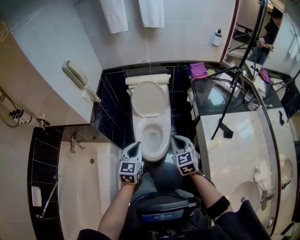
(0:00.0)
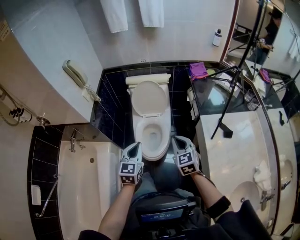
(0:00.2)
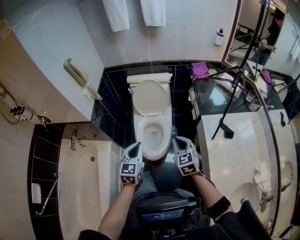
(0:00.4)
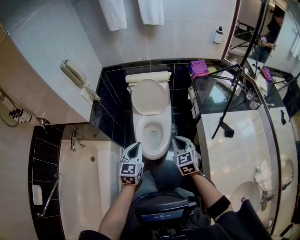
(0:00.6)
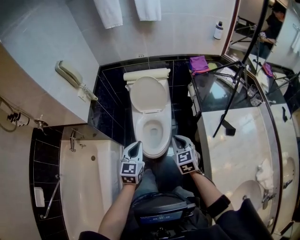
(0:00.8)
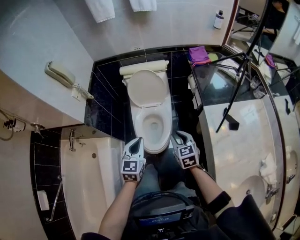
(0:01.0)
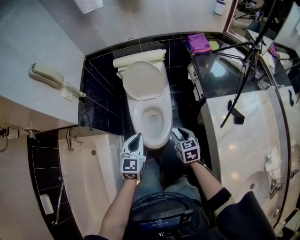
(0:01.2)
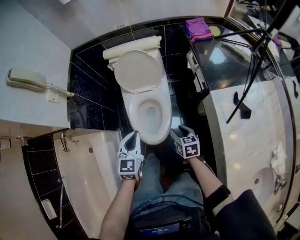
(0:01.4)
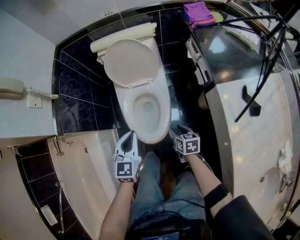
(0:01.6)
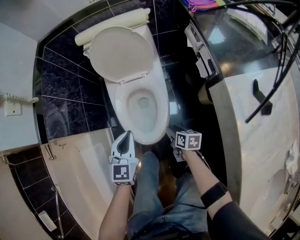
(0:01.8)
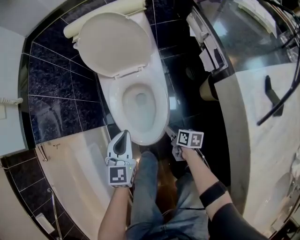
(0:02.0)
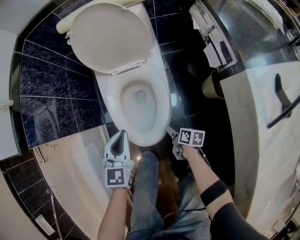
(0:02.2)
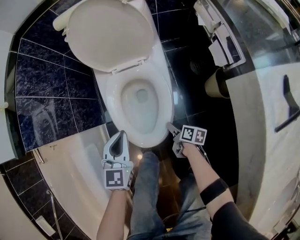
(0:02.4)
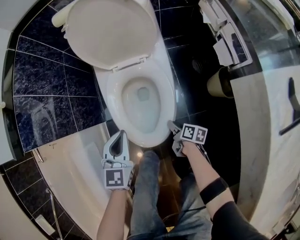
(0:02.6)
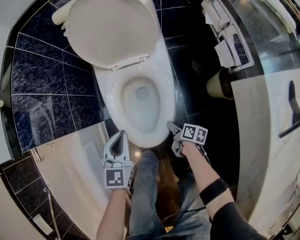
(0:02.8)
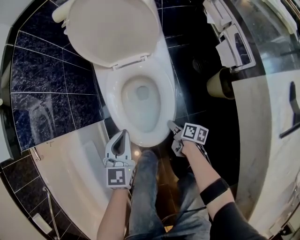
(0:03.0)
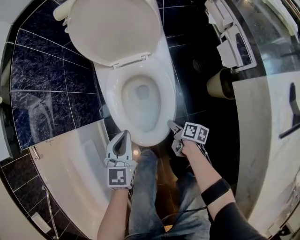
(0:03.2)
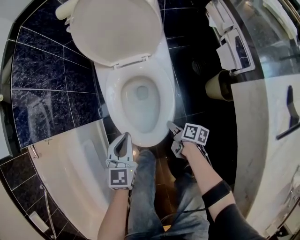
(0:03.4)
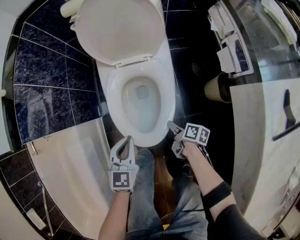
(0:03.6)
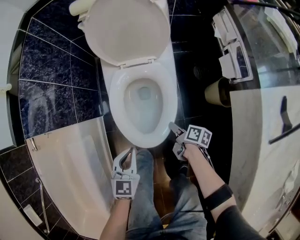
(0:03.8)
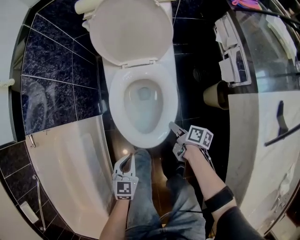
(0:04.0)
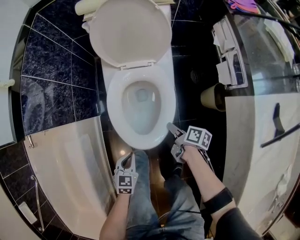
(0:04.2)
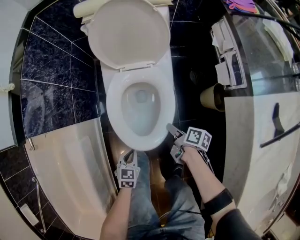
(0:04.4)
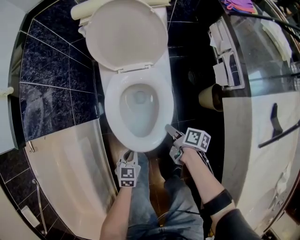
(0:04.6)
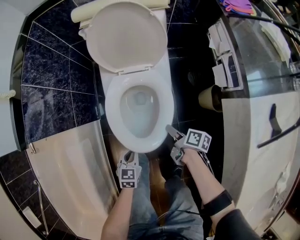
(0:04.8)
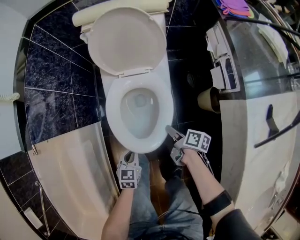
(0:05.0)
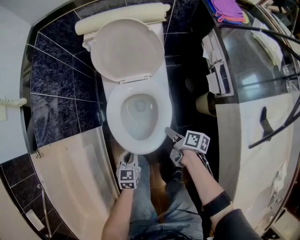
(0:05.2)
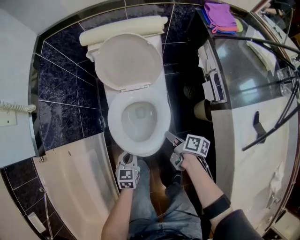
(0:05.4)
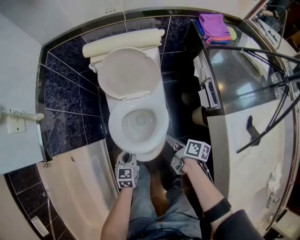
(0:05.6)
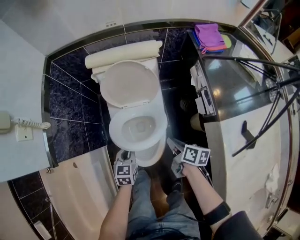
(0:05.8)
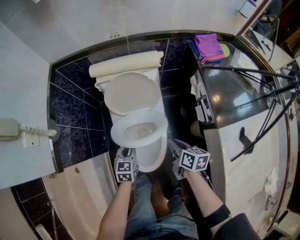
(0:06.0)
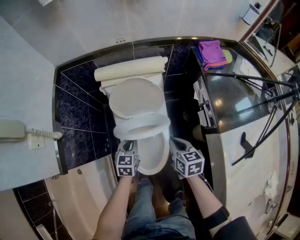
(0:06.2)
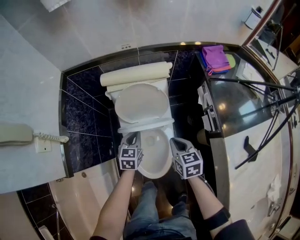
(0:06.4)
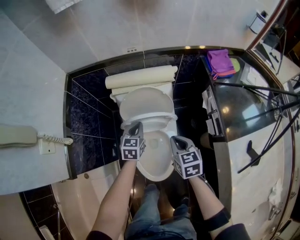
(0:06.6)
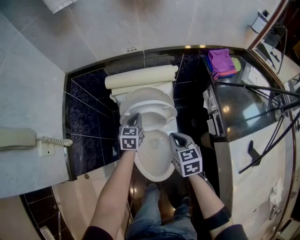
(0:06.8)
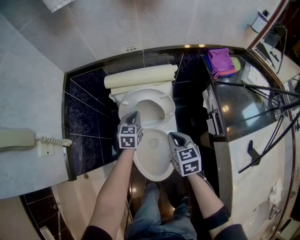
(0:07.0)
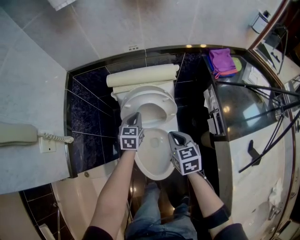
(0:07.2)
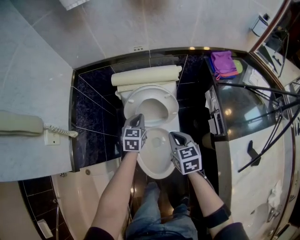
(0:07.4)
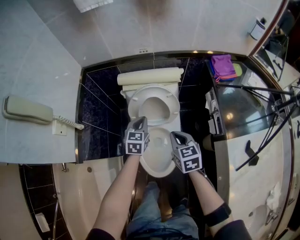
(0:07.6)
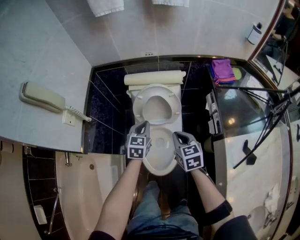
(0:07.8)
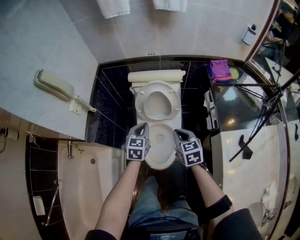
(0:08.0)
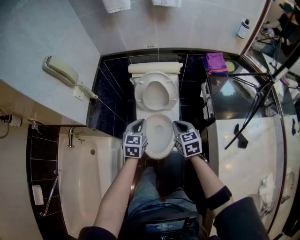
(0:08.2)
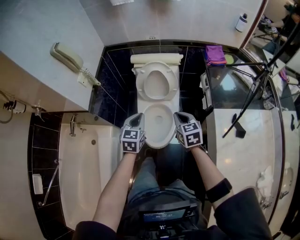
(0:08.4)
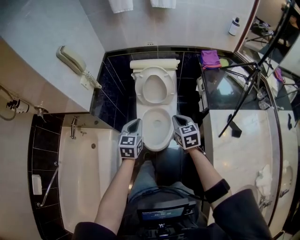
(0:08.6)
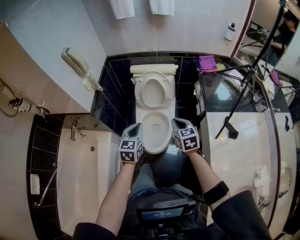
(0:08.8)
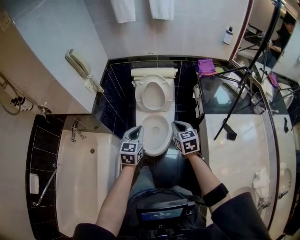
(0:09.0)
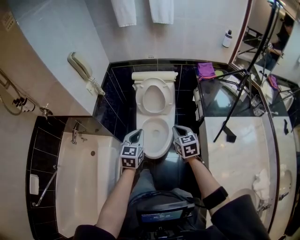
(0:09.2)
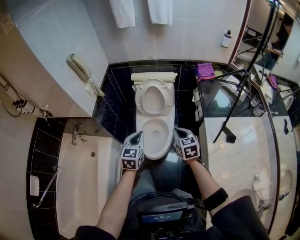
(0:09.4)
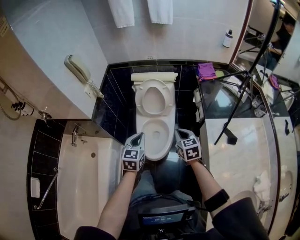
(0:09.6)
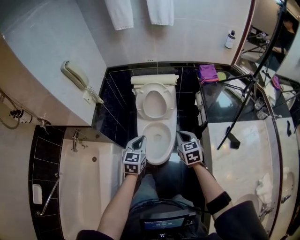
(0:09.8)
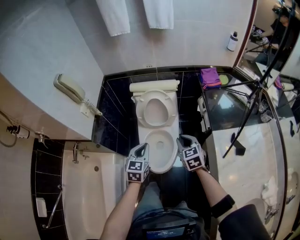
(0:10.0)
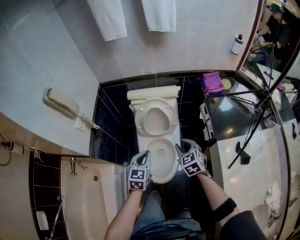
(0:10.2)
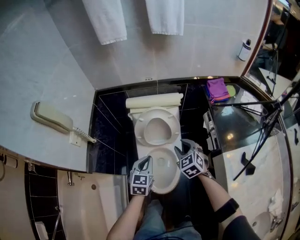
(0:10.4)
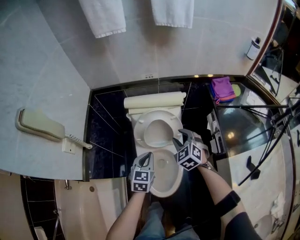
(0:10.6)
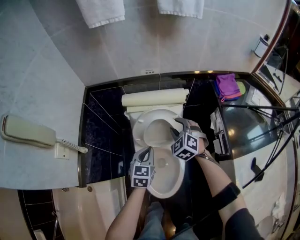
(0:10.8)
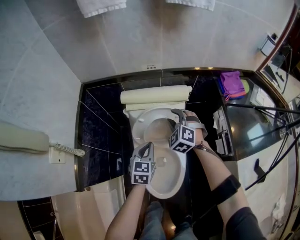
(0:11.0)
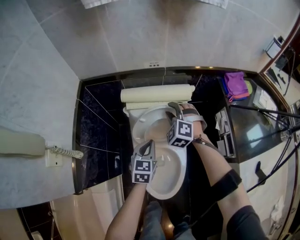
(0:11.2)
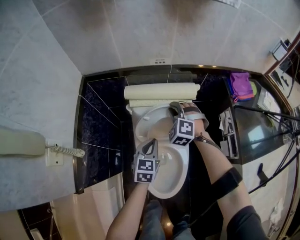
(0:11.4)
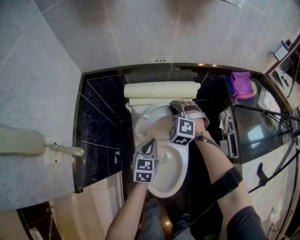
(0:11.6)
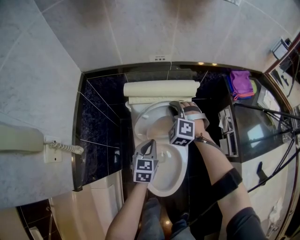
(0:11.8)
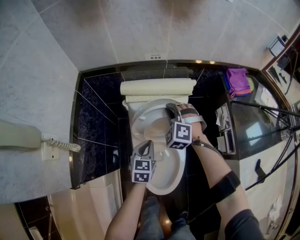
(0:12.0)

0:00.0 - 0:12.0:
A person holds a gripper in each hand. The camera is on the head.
0:00.0 - 0:01.6: The right gripper travels downward by some 40 cm, twists roughly 40 degrees clockwise, seen from behind, and opens. The left gripper travels downward and forward by roughly 25 cm.
0:01.6 - 0:03.0: The grippers both shift downward by some 25 cm. The right gripper turns by some 40 degrees.
0:03.0 - 0:04.4: The left gripper travels backward and downward by some 15 cm, and turns by some 20 degrees. Meanwhile the right gripper is displaced upward by approximately 15 cm.
0:04.4 - 0:06.0: The right gripper goes roughly 30 cm upward and forward, changes its angle by some 30 degrees, and closes up. The left gripper shifts about 30 cm forward and upward.
0:06.0 - 0:07.6: The right gripper travels upward, to the left and forward by roughly 15 cm, and turns by about 40 degrees. Meanwhile the left gripper goes roughly 20 cm forward and upward.
0:07.6 - 0:09.0: The left gripper shifts some 40 cm backward and upward, while the right gripper goes roughly 25 cm backward and upward.
0:09.0 - 0:10.4: The two grippers go approximately 25 cm forward and downward. The right gripper changes its angle by about 20 degrees, and opens up.
0:10.4 - 0:12.0: The right gripper goes approximately 25 cm forward and to the left, and rolls counterclockwise, seen from behind, by approximately 40 degrees, while the left gripper travels downward and forward by roughly 20 cm.

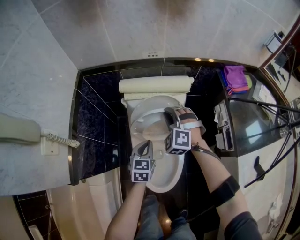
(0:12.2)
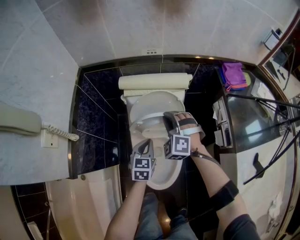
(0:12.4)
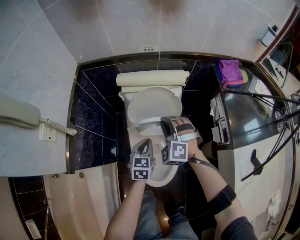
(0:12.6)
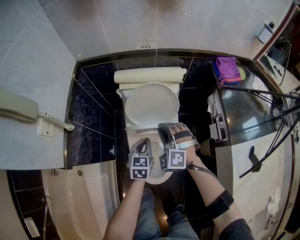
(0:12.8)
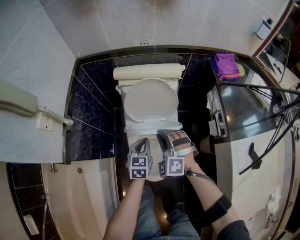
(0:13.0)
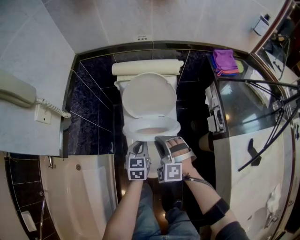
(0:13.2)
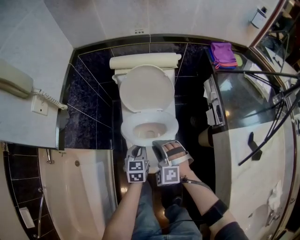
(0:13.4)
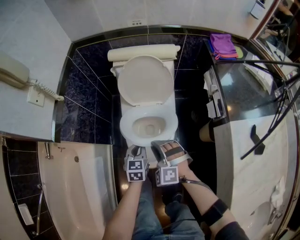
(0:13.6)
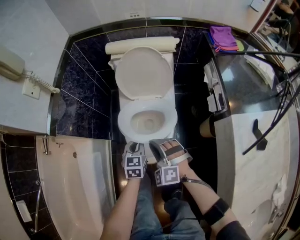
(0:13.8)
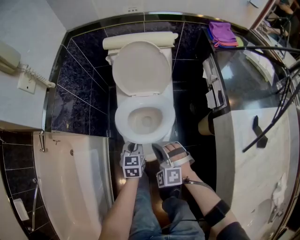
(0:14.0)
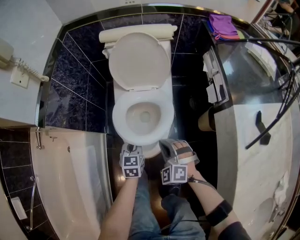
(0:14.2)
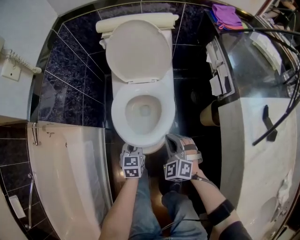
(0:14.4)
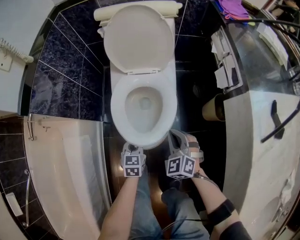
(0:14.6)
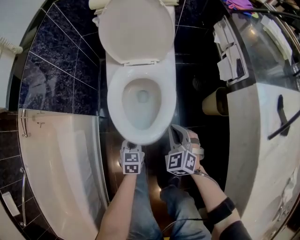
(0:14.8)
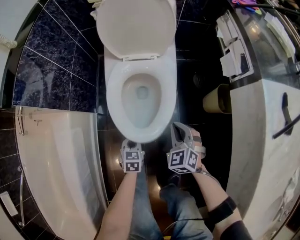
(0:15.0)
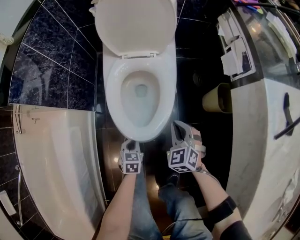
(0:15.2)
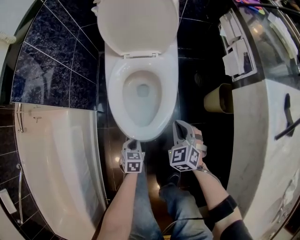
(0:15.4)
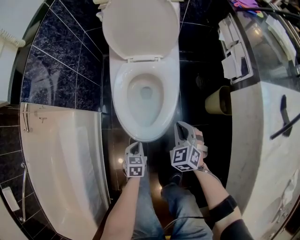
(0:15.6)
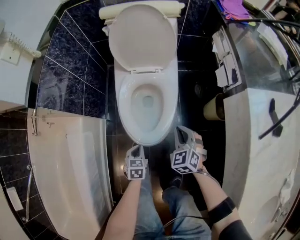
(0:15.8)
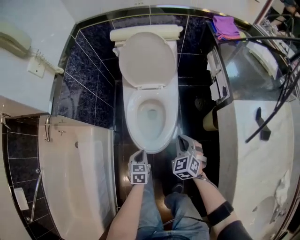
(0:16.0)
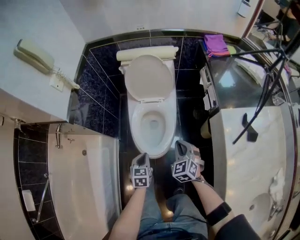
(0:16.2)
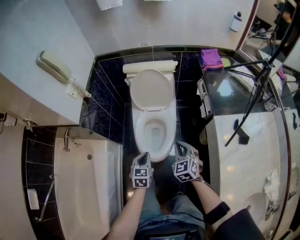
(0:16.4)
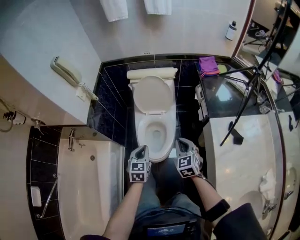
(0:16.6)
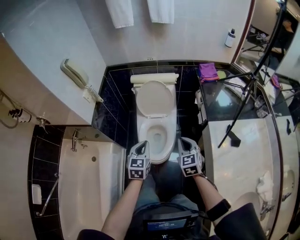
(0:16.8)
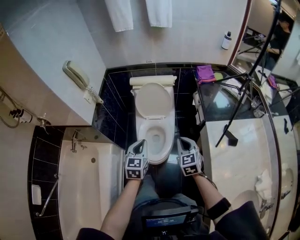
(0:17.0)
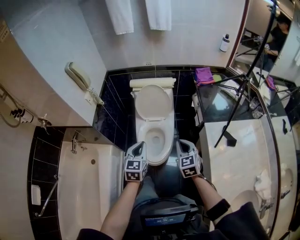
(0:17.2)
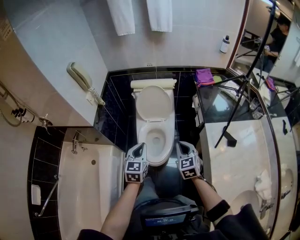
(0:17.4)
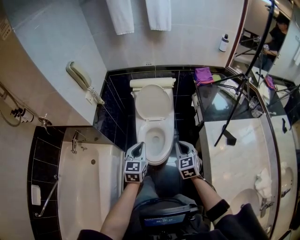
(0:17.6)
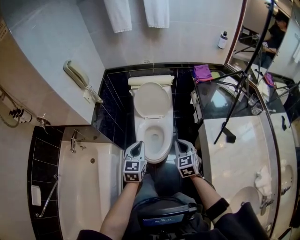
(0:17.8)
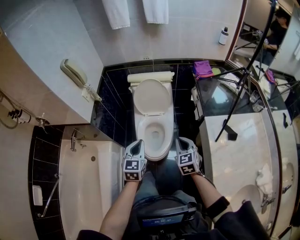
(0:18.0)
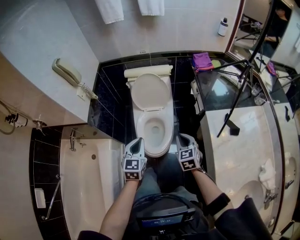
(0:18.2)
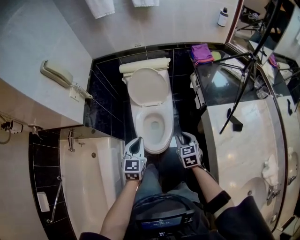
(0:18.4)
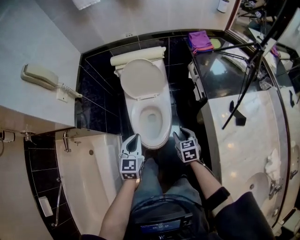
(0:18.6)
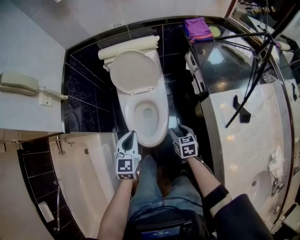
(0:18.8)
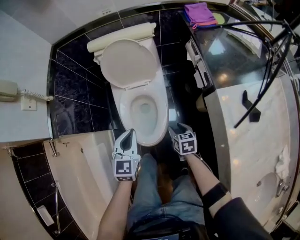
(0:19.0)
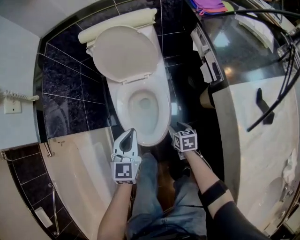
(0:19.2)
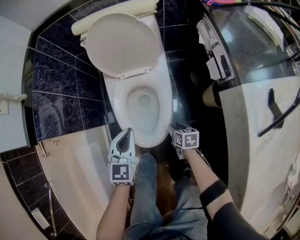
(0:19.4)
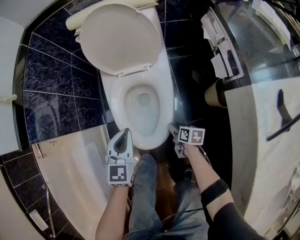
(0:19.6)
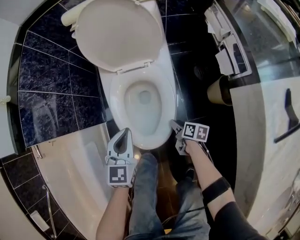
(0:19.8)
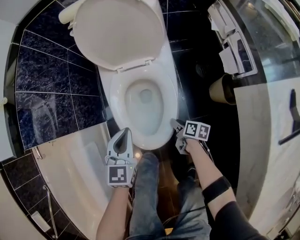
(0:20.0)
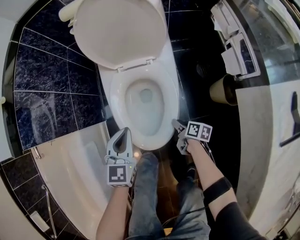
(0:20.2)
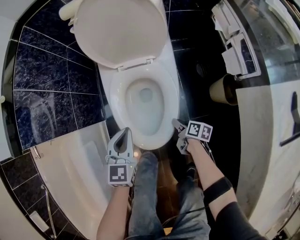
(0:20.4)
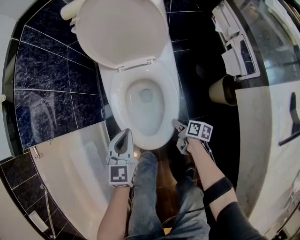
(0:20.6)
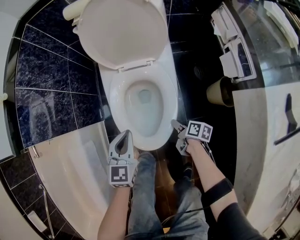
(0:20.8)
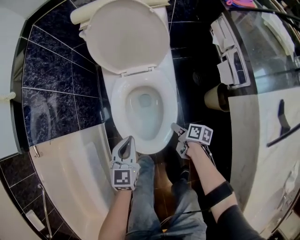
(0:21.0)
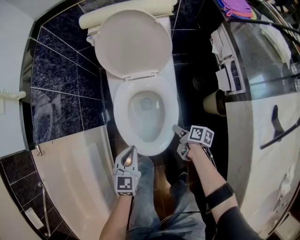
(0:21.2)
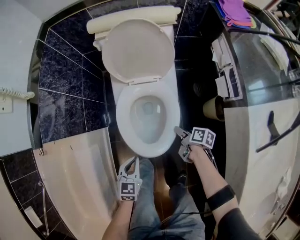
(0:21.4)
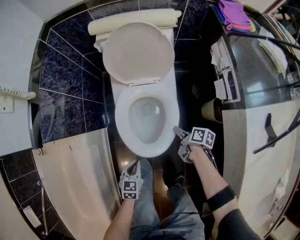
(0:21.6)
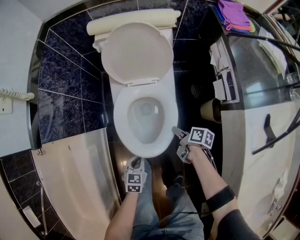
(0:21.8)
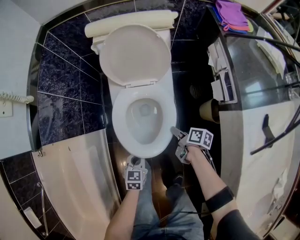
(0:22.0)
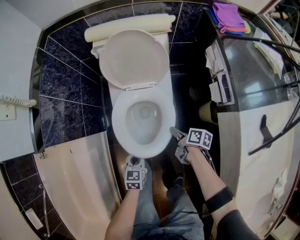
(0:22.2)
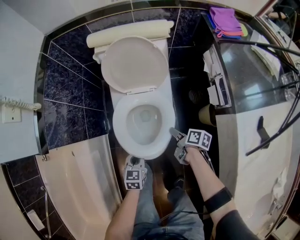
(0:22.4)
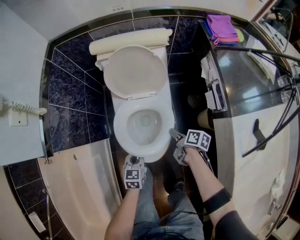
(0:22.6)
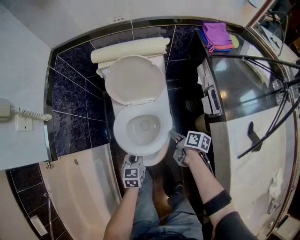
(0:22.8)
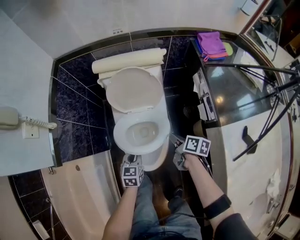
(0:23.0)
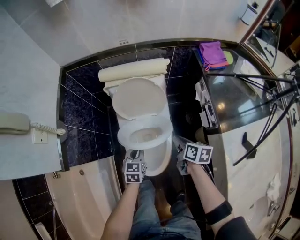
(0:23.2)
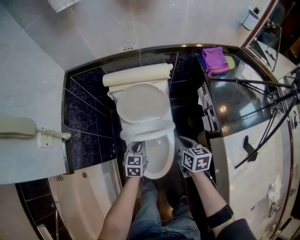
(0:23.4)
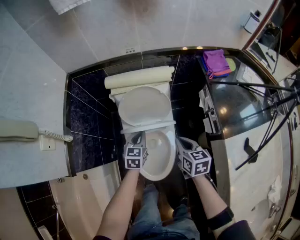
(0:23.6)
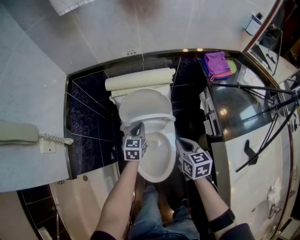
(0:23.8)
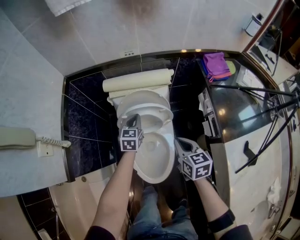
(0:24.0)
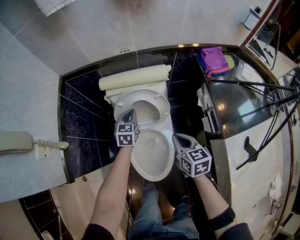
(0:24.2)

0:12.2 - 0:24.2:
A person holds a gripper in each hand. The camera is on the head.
0:12.2 - 0:13.8: The right gripper shifts approximately 35 cm backward. Meanwhile the left gripper travels backward and downward by approximately 25 cm.
0:13.8 - 0:15.2: The left gripper heads downward and backward, covering about 35 cm. Meanwhile the right gripper shifts roughly 25 cm downward and to the right, and swivels some 40 degrees.
0:15.2 - 0:16.6: Both grippers travel together upward, about 50 cm. The right gripper turns by about 20 degrees. Meanwhile the left gripper changes its angle by about 20 degrees.
0:16.6 - 0:18.2: The left gripper moves upward, some 10 cm.
0:18.2 - 0:19.8: The left gripper travels downward by roughly 35 cm. The right gripper is displaced downward by roughly 50 cm, rotates around the line of its fingers by some 70 degrees, clockwise from behind, and opens up.
0:19.8 - 0:21.2: The right gripper shifts some 10 cm upward. Meanwhile the left gripper heads backward, covering roughly 5 cm.
0:21.2 - 0:22.6: The left gripper reaches some 10 cm backward, then returns. The right gripper travels upward and forward by approximately 15 cm.
0:22.6 - 0:24.2: The right gripper goes roughly 25 cm upward and forward, rotates around the line of its fingers by approximately 50 degrees, counterclockwise from behind, and closes. Meanwhile the left gripper heads forward and upward, covering some 40 cm.
